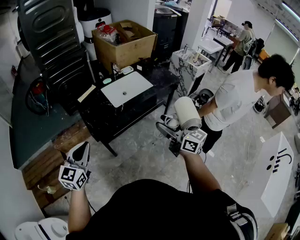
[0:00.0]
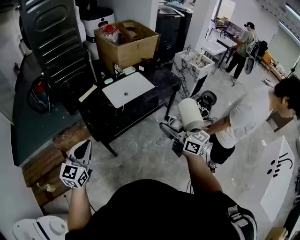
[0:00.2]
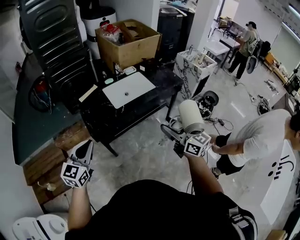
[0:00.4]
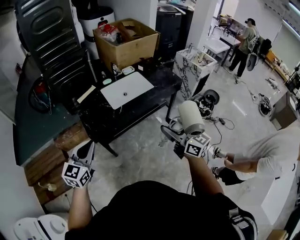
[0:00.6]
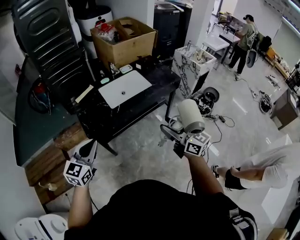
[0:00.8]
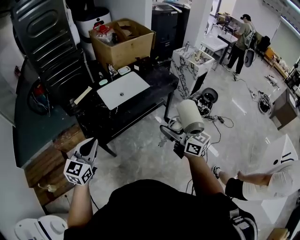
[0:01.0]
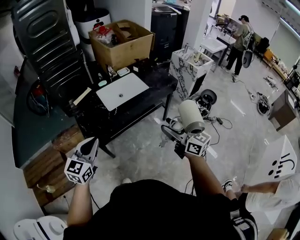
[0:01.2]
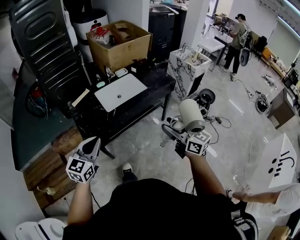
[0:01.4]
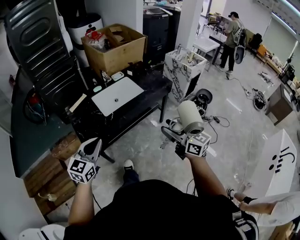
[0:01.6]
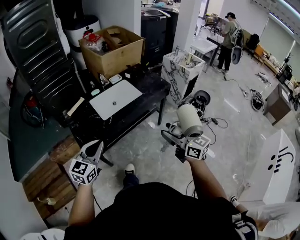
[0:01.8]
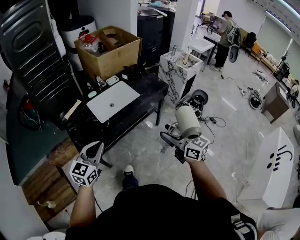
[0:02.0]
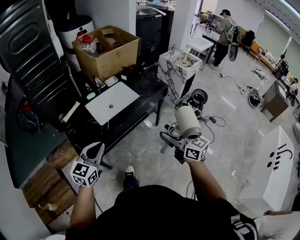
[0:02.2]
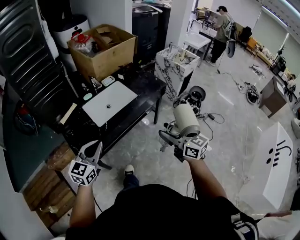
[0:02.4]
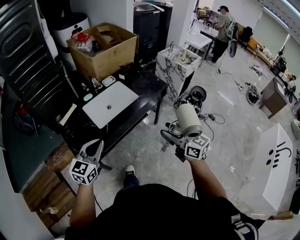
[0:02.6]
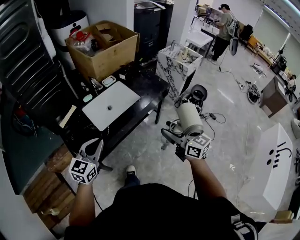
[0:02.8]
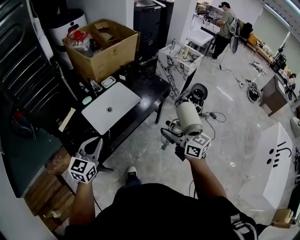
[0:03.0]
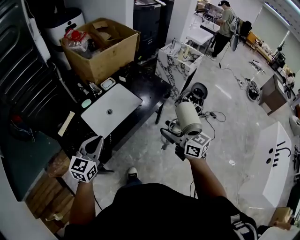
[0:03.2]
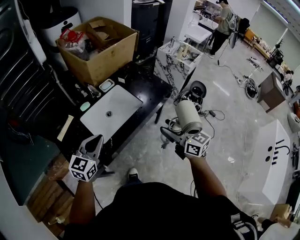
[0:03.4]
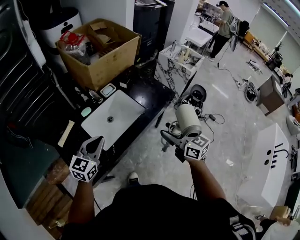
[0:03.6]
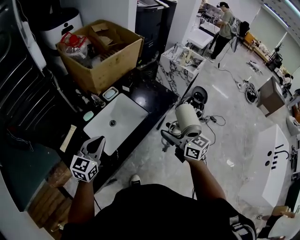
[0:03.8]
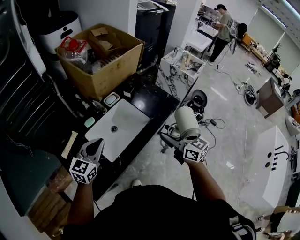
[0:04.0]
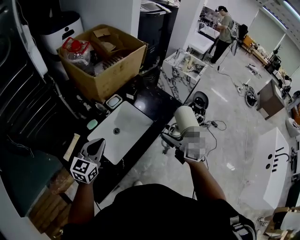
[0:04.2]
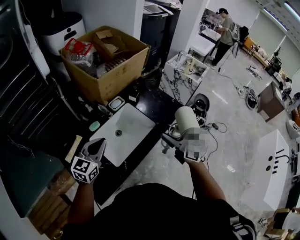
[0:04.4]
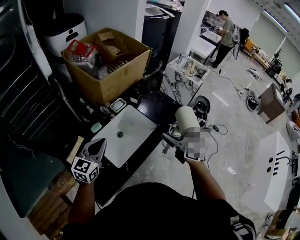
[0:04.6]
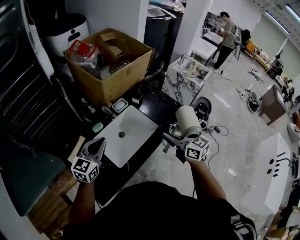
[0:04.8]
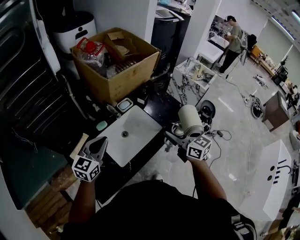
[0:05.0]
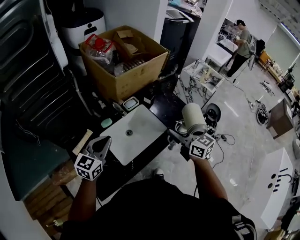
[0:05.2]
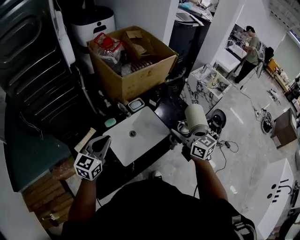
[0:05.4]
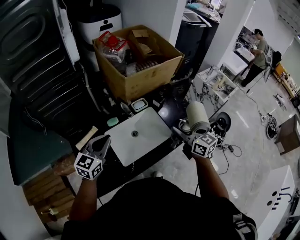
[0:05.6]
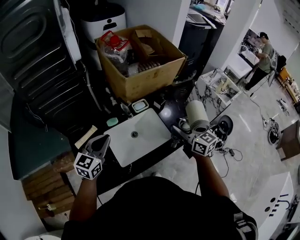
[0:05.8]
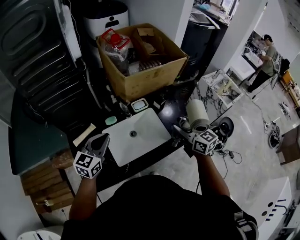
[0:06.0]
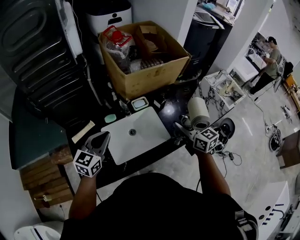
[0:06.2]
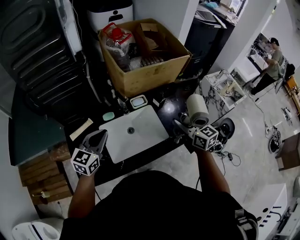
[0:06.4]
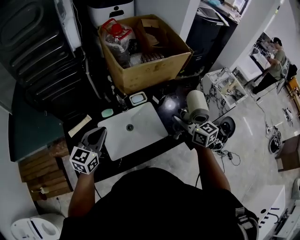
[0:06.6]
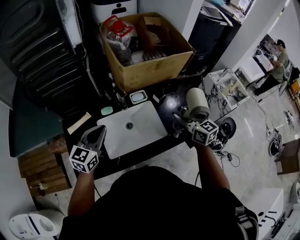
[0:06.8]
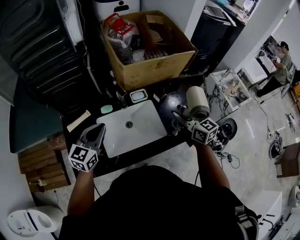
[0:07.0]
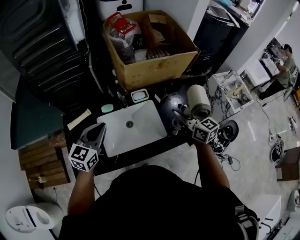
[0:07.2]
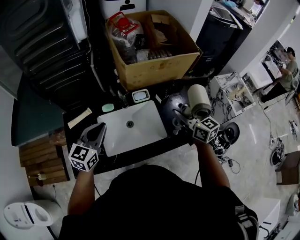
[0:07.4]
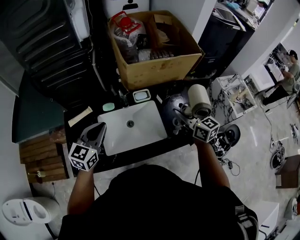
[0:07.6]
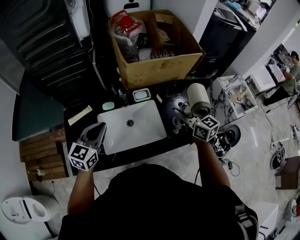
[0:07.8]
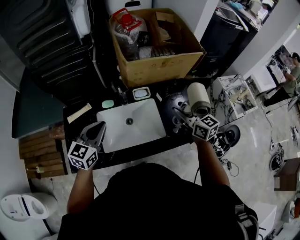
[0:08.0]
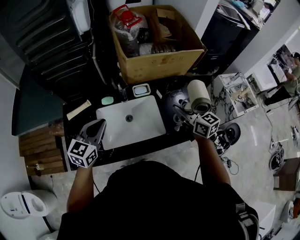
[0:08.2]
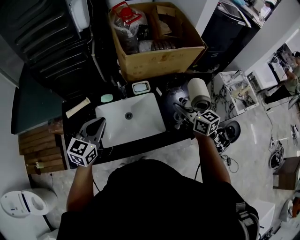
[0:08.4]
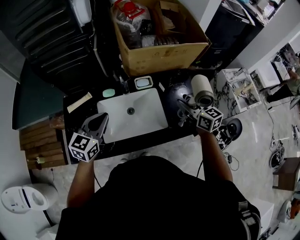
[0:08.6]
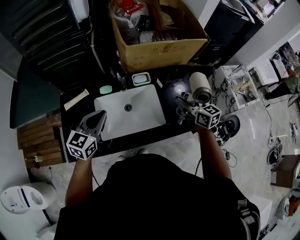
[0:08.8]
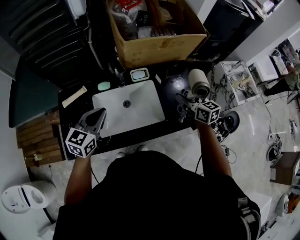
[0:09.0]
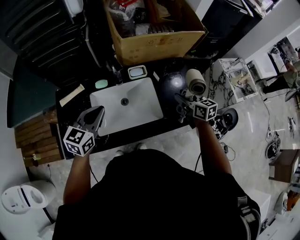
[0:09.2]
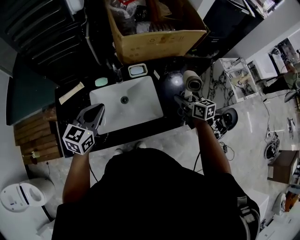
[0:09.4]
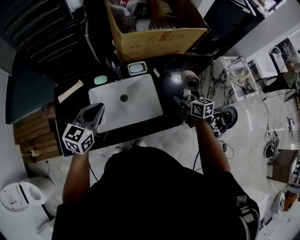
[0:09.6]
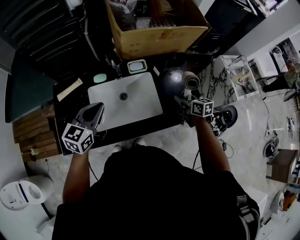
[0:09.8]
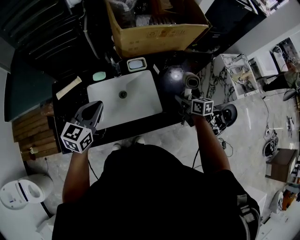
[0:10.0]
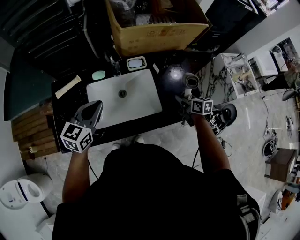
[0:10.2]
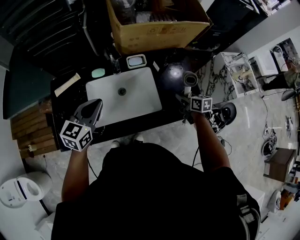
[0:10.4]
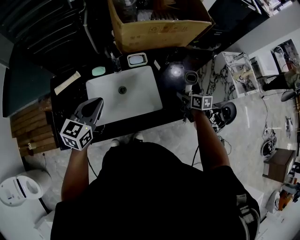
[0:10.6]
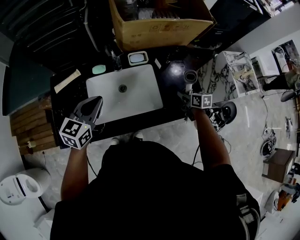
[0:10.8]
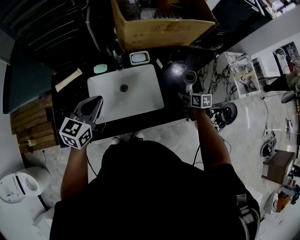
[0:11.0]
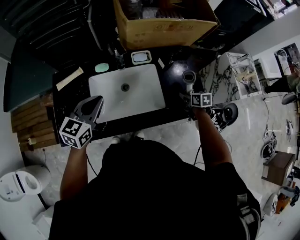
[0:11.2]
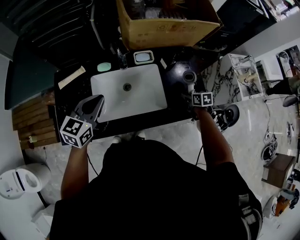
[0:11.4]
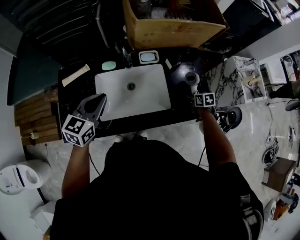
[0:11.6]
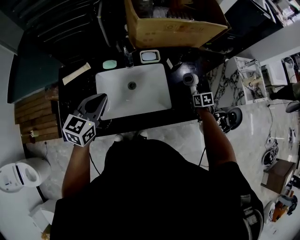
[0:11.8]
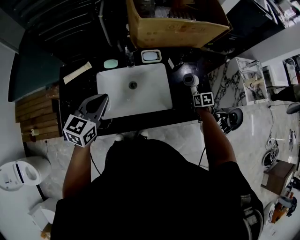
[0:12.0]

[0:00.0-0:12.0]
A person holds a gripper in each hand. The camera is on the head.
0:00.0 to 0:01.6: The grippers both shift to the right by about 15 cm.
0:01.6 to 0:03.0: The two grippers go roughly 20 cm forward.
0:03.0 to 0:04.4: The right gripper travels forward and to the left by about 25 cm. The left gripper moves forward, some 25 cm.
0:04.4 to 0:06.0: The right gripper heads forward, covering approximately 15 cm.
0:06.0 to 0:07.6: The right gripper heads forward and to the right, covering roughly 10 cm; the left gripper travels to the right by roughly 5 cm.
0:07.6 to 0:09.0: The right gripper is displaced downward by some 10 cm.
0:09.0 to 0:10.4: The right gripper goes roughly 15 cm downward, and swivels roughly 20 degrees.
0:10.4 to 0:12.0: The right gripper is displaced downward by approximately 10 cm, and swivels some 30 degrees.

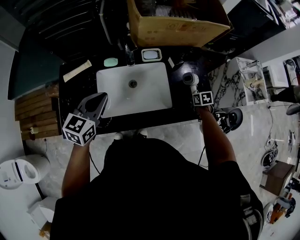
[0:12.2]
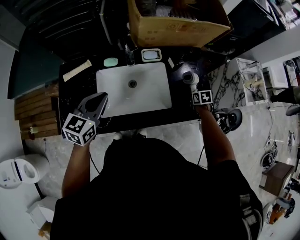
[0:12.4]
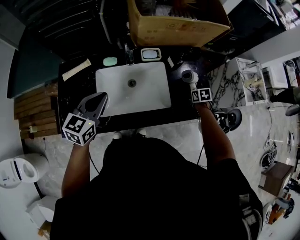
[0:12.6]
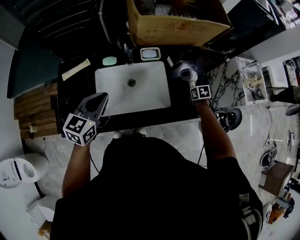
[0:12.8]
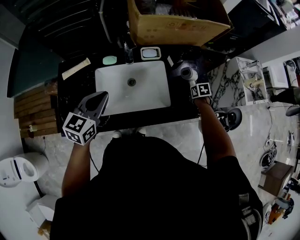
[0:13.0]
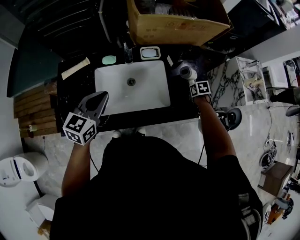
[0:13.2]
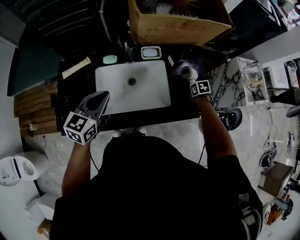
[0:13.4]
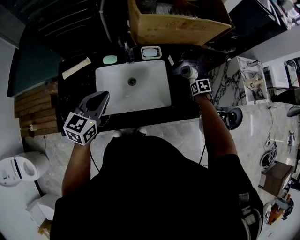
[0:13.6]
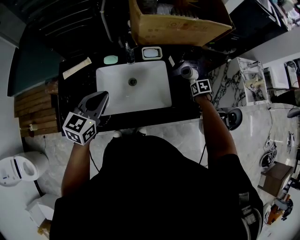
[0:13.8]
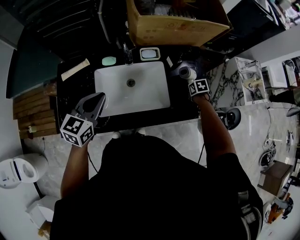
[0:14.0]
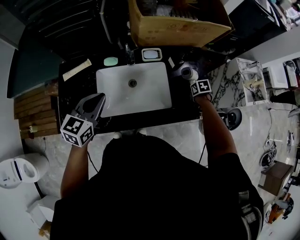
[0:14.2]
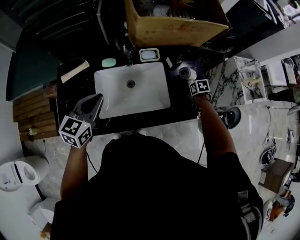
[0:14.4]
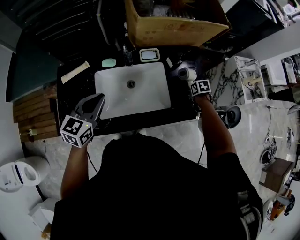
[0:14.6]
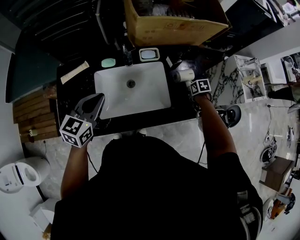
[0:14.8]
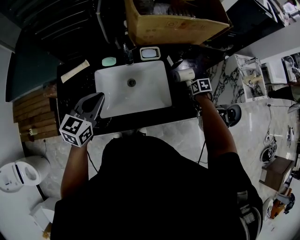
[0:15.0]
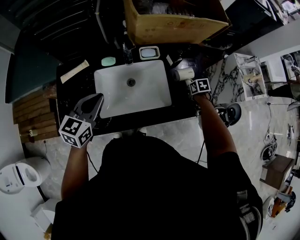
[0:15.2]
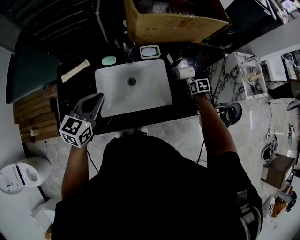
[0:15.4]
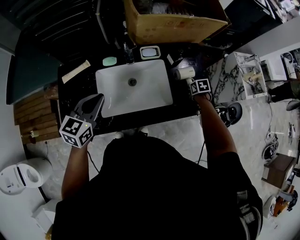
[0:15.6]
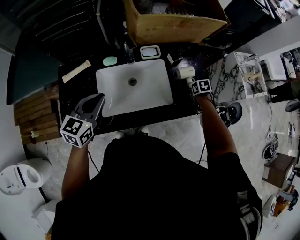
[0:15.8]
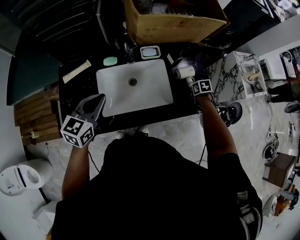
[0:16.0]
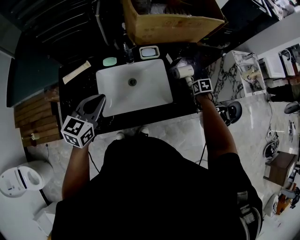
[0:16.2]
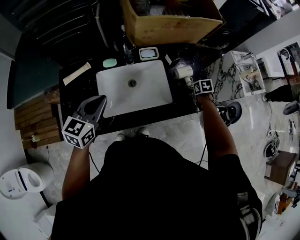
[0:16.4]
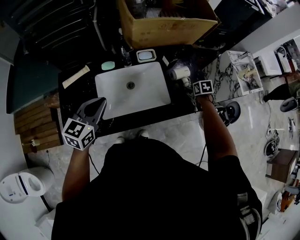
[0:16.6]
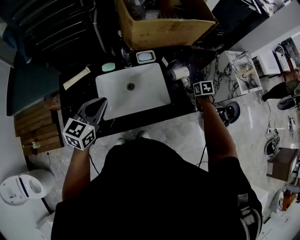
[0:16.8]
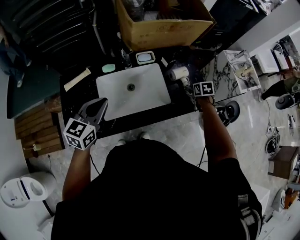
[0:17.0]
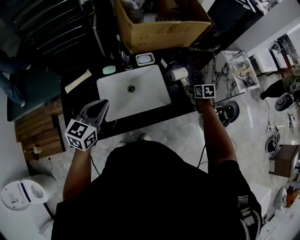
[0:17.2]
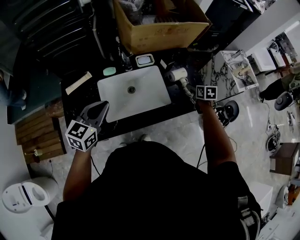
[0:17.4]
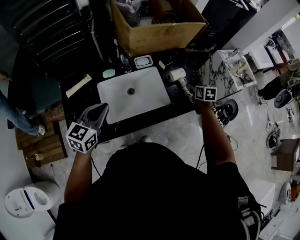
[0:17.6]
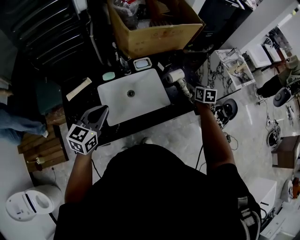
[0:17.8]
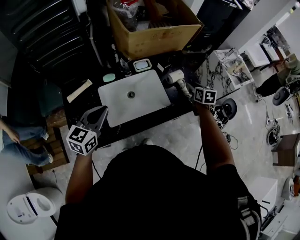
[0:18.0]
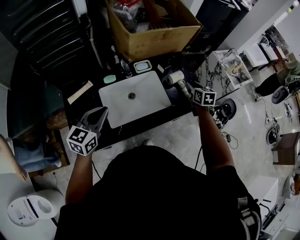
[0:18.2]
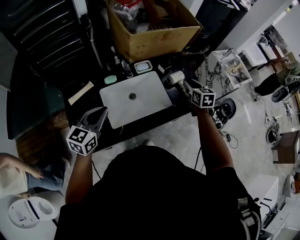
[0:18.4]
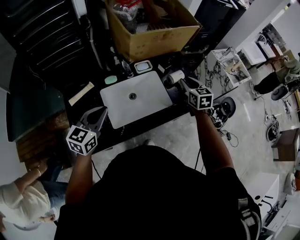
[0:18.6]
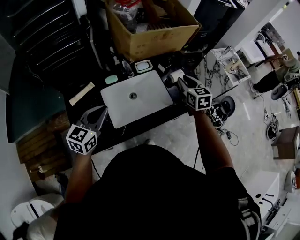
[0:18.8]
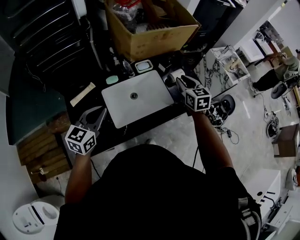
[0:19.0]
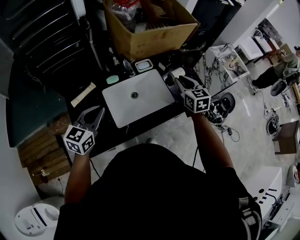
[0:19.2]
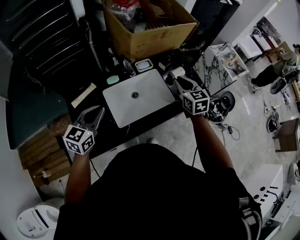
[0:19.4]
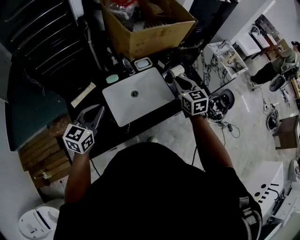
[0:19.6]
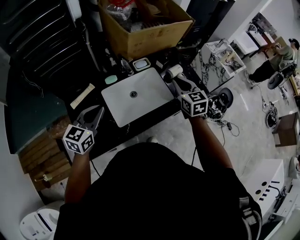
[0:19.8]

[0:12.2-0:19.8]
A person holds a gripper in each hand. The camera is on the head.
0:12.2 to 0:15.2: There are only small adjustments of the grippers.
0:15.2 to 0:16.8: The right gripper shifts about 5 cm upward.
0:16.8 to 0:18.2: The right gripper moves upward, roughly 15 cm, turns by about 30 degrees, and closes its fingers.
0:18.2 to 0:19.8: The left gripper heads to the left, covering roughly 5 cm, while the right gripper travels to the left, backward and upward by approximately 20 cm.

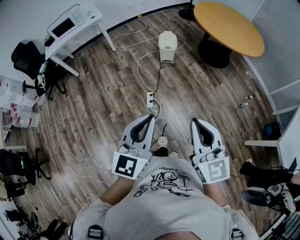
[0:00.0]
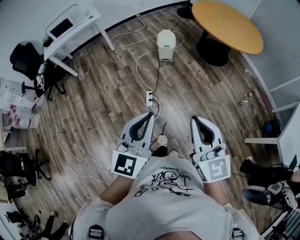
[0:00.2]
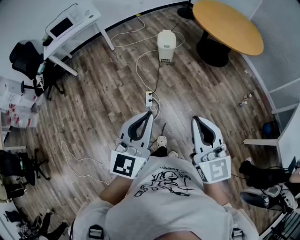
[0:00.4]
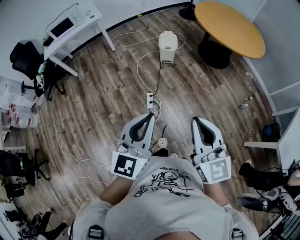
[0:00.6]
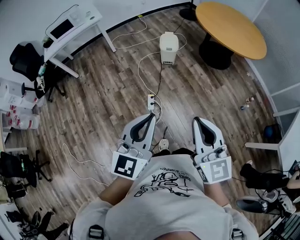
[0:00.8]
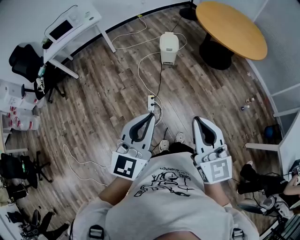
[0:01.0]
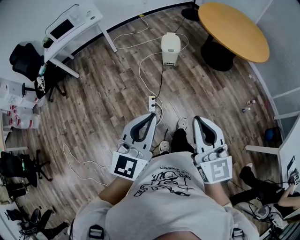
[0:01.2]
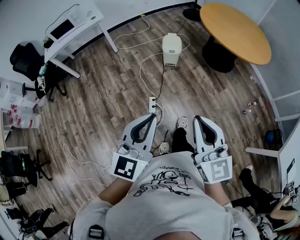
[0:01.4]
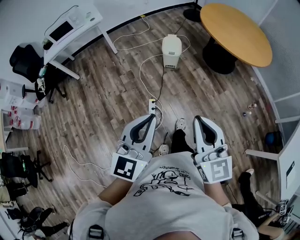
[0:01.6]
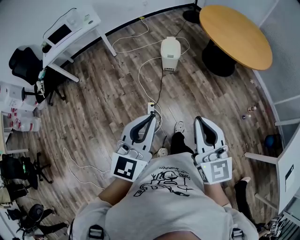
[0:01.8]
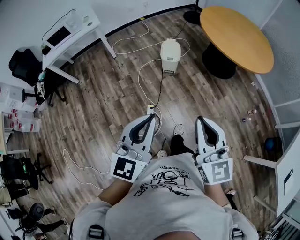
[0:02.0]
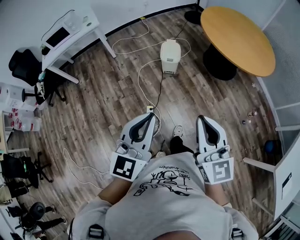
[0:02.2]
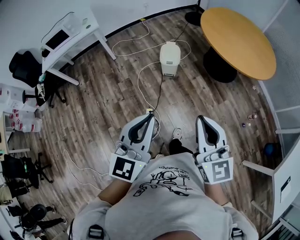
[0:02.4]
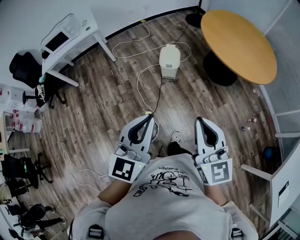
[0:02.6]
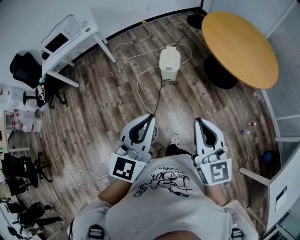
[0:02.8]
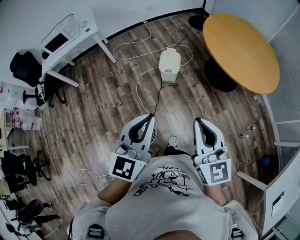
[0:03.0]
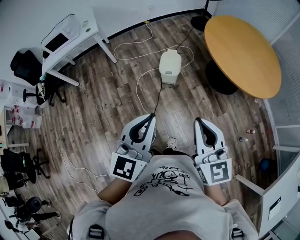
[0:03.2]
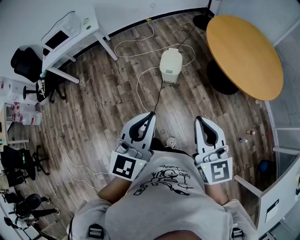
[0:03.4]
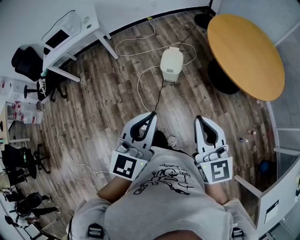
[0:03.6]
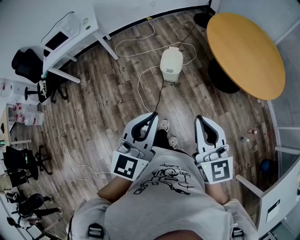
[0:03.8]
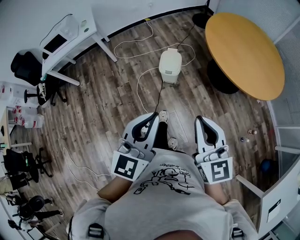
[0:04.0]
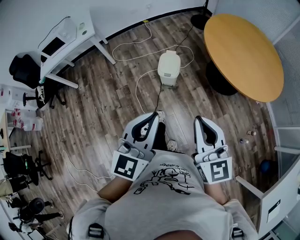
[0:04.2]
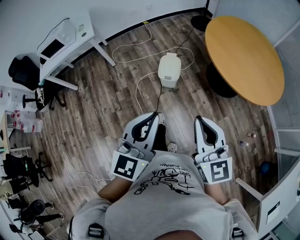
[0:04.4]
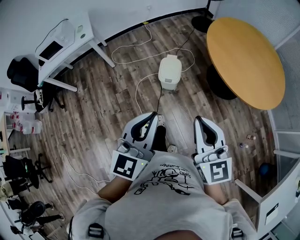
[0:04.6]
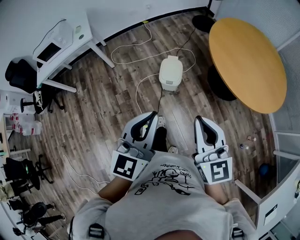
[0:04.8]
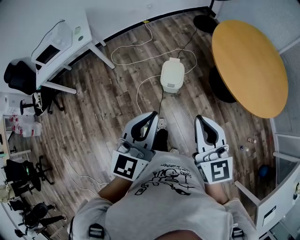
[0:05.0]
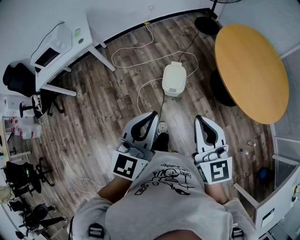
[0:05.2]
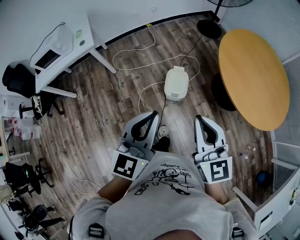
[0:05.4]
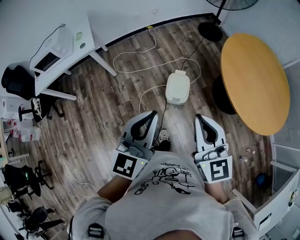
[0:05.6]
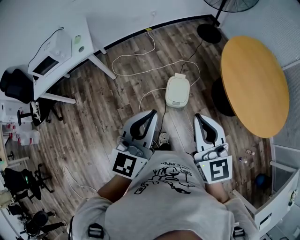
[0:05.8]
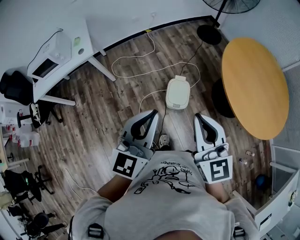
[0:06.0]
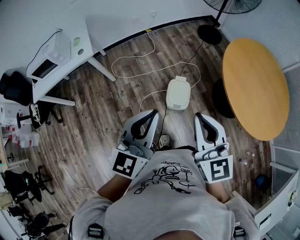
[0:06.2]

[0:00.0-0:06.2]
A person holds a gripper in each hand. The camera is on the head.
0:00.0 to 0:01.6: Both grippers move forward, roughly 15 cm.
0:01.6 to 0:03.2: The grippers both shift forward and to the right by about 30 cm.
0:03.2 to 0:04.6: Both grippers move forward, approximately 15 cm.
0:04.6 to 0:06.2: Both grippers move forward and to the left, approximately 30 cm.
